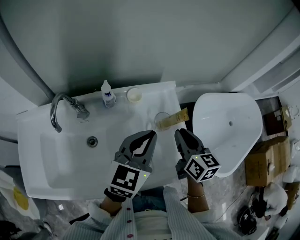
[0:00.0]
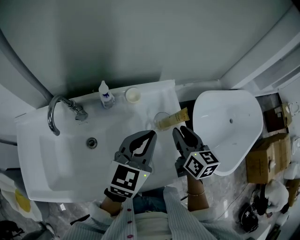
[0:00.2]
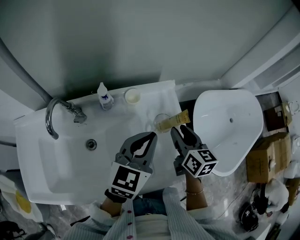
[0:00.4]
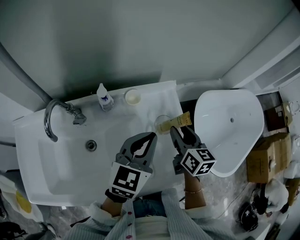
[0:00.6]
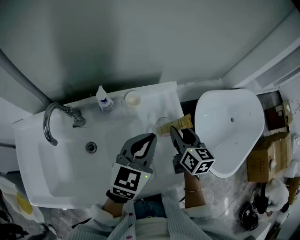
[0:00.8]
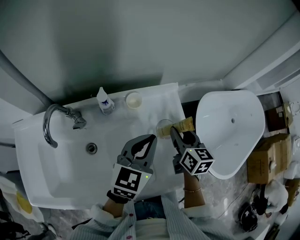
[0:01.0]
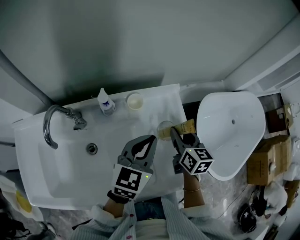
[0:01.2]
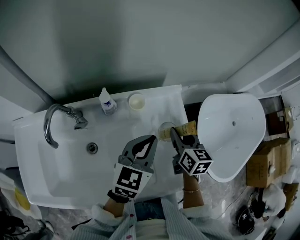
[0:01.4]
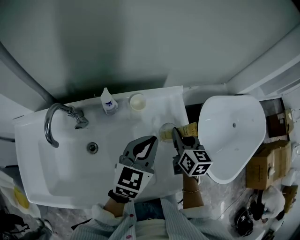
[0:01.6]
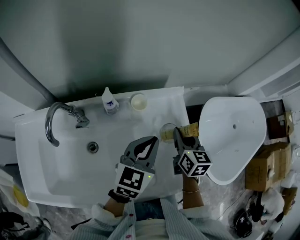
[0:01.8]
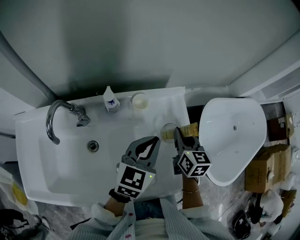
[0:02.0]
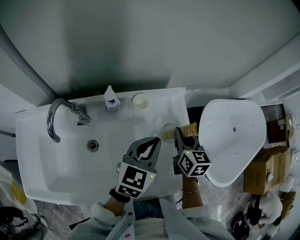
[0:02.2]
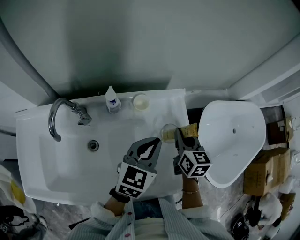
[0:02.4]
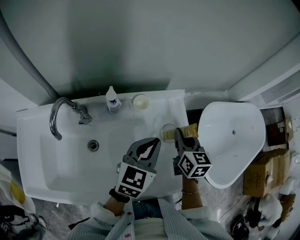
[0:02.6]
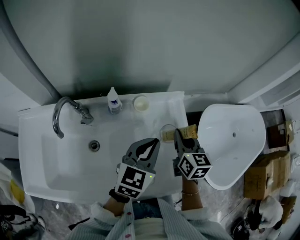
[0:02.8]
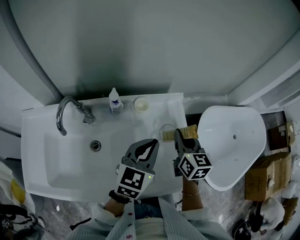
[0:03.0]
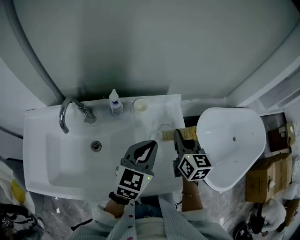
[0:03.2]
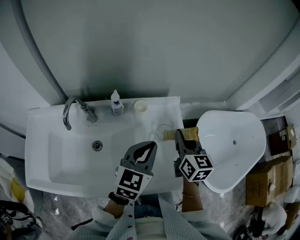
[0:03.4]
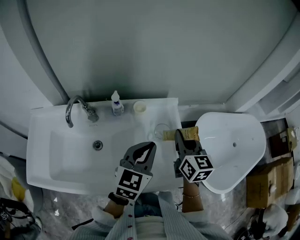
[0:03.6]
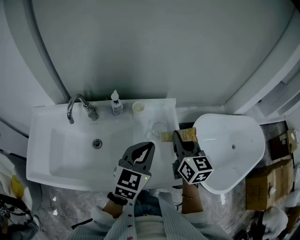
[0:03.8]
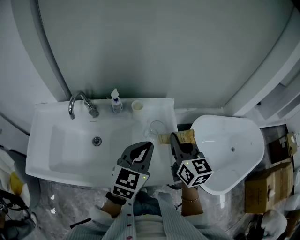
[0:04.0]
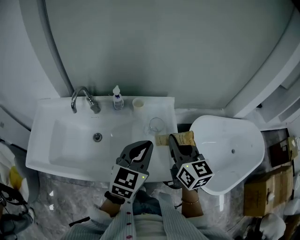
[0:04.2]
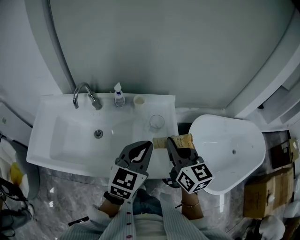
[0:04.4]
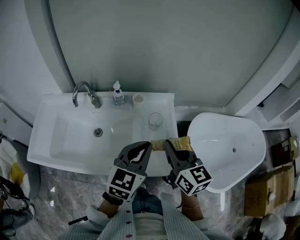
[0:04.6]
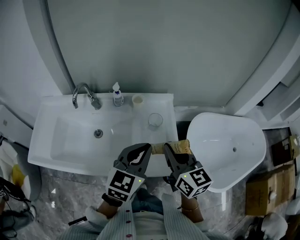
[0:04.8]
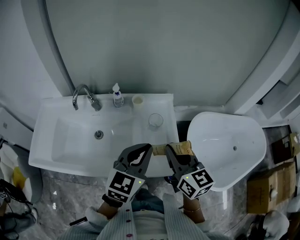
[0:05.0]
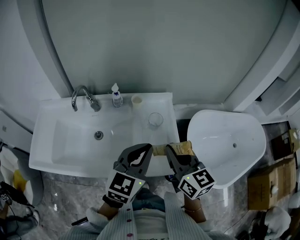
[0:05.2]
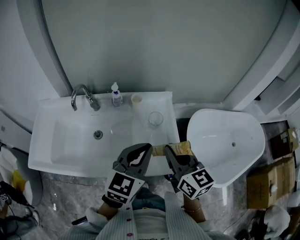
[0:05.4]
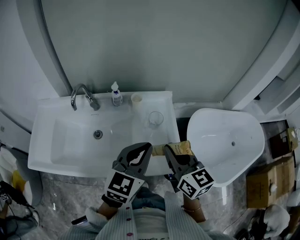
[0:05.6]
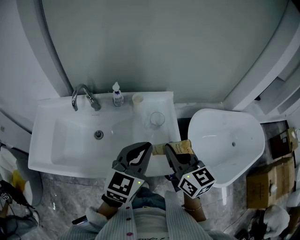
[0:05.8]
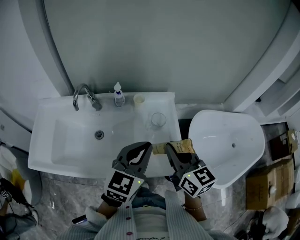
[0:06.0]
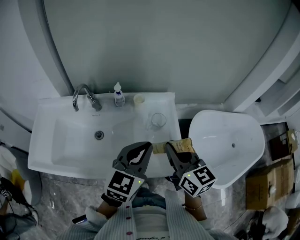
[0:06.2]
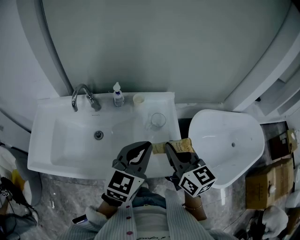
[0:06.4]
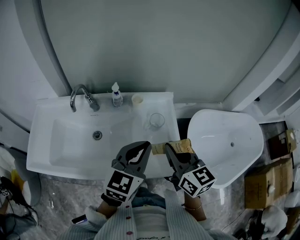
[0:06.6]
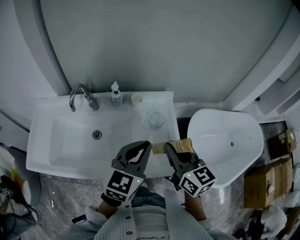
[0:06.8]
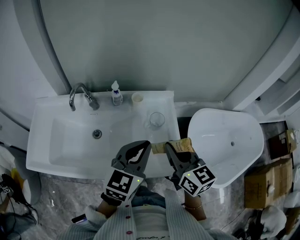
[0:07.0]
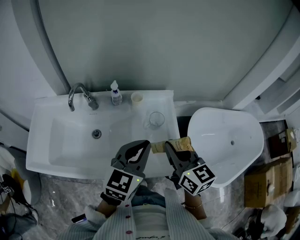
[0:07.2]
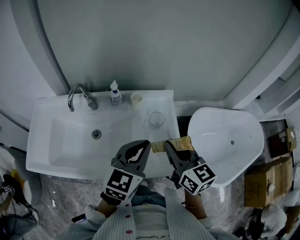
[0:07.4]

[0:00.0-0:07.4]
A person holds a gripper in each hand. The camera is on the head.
0:00.0 to 0:01.4: The left gripper goes approximately 5 cm downward. The right gripper is displaced downward and forward by approximately 10 cm, and opens up.
0:01.4 to 0:03.0: The right gripper goes some 5 cm upward, and closes up.
0:03.0 to 0:04.4: The two grippers go about 15 cm backward and upward. The right gripper rotates approximately 20 degrees.
0:04.4 to 0:07.4: The grippers move only a little.

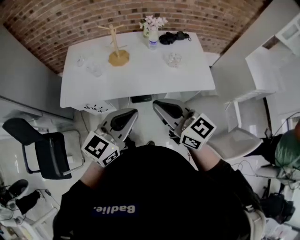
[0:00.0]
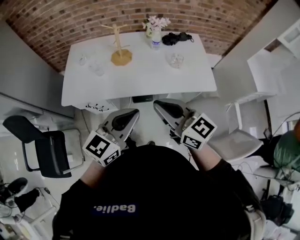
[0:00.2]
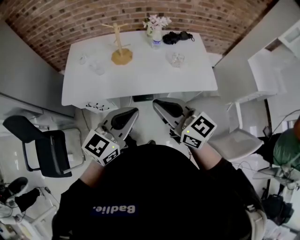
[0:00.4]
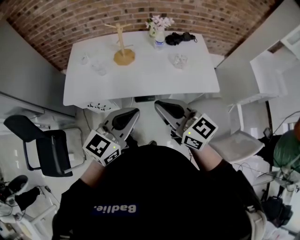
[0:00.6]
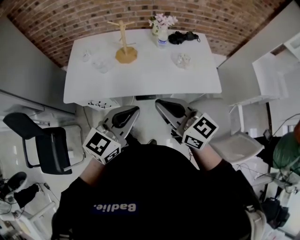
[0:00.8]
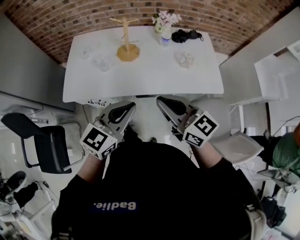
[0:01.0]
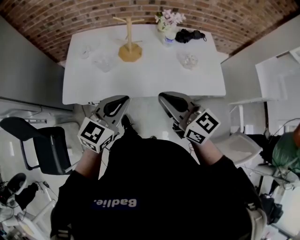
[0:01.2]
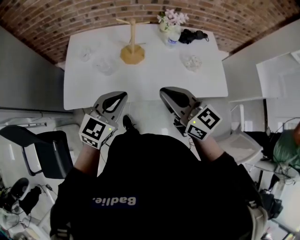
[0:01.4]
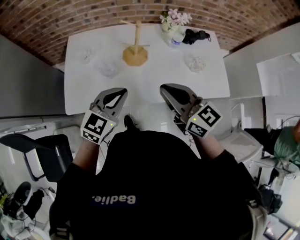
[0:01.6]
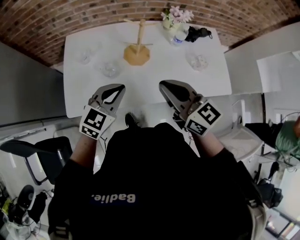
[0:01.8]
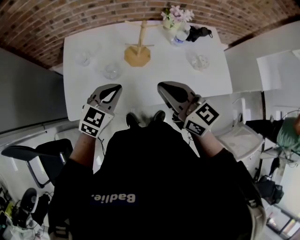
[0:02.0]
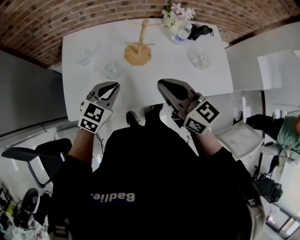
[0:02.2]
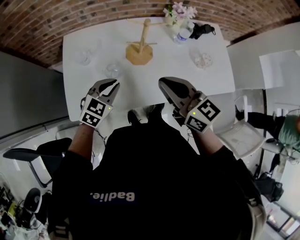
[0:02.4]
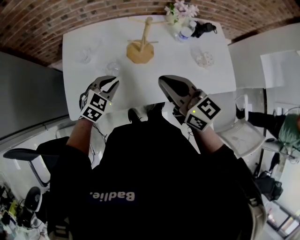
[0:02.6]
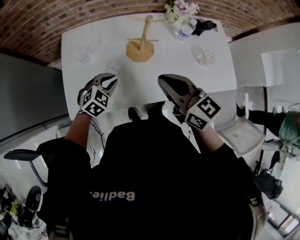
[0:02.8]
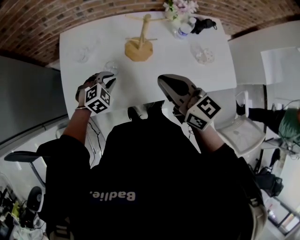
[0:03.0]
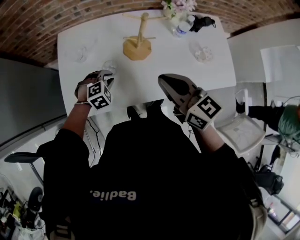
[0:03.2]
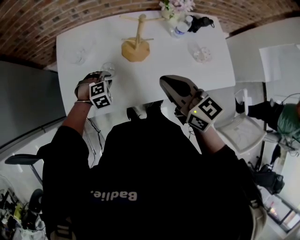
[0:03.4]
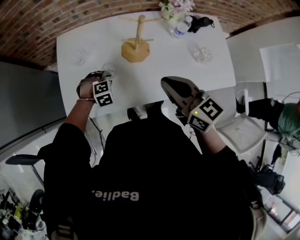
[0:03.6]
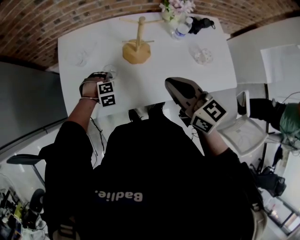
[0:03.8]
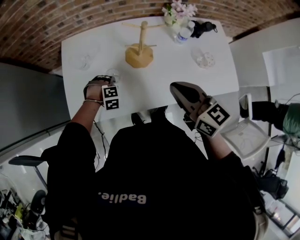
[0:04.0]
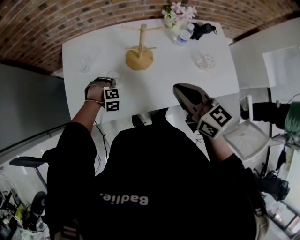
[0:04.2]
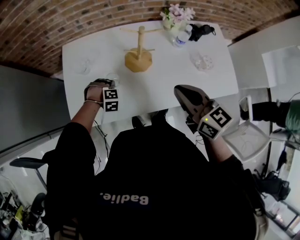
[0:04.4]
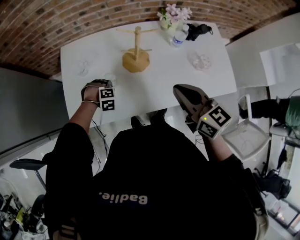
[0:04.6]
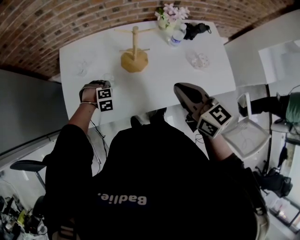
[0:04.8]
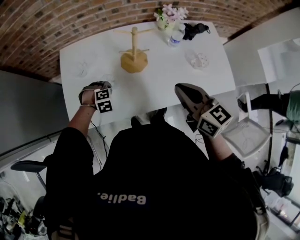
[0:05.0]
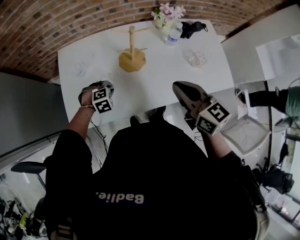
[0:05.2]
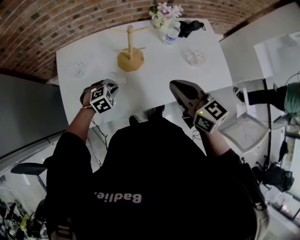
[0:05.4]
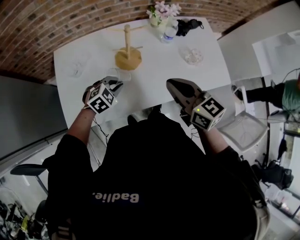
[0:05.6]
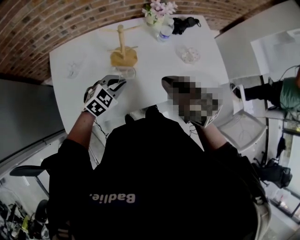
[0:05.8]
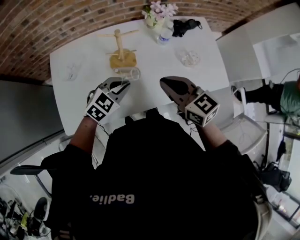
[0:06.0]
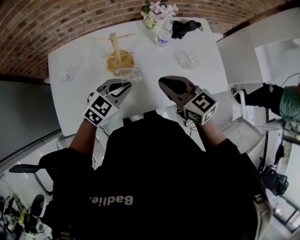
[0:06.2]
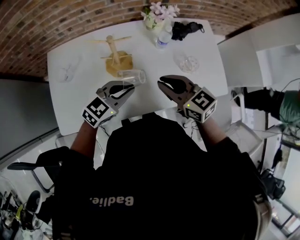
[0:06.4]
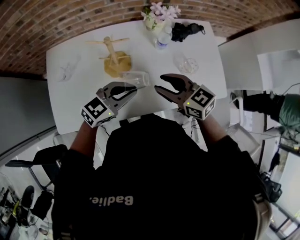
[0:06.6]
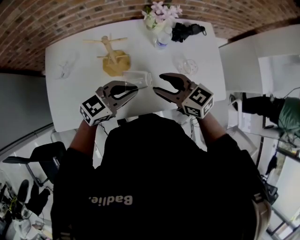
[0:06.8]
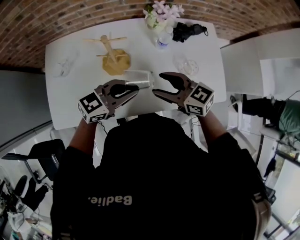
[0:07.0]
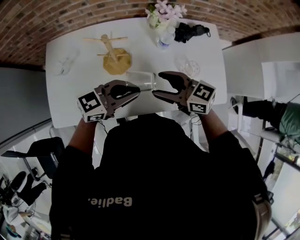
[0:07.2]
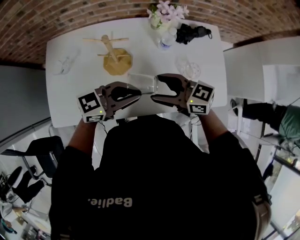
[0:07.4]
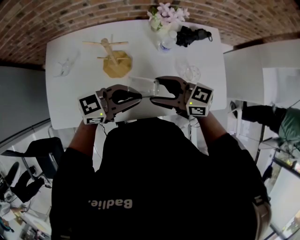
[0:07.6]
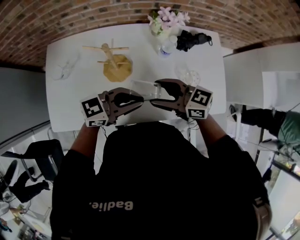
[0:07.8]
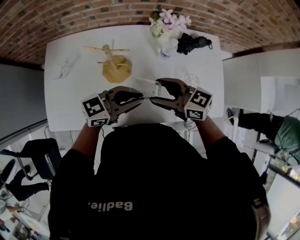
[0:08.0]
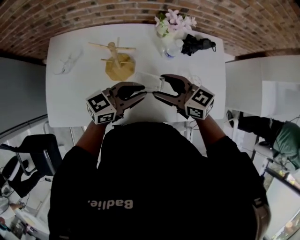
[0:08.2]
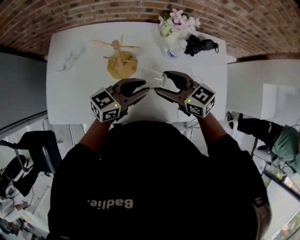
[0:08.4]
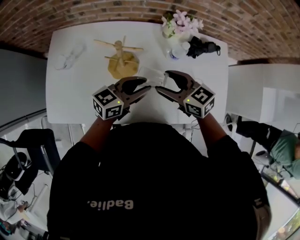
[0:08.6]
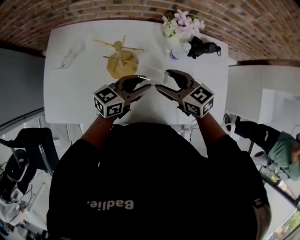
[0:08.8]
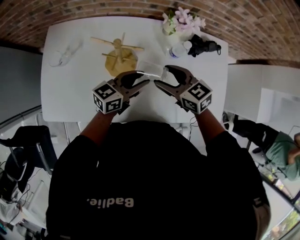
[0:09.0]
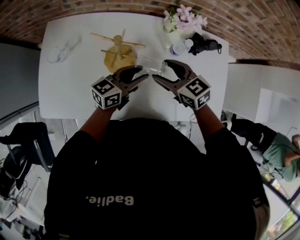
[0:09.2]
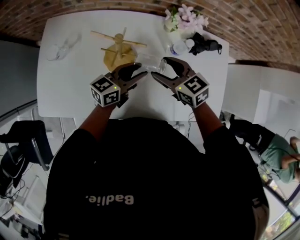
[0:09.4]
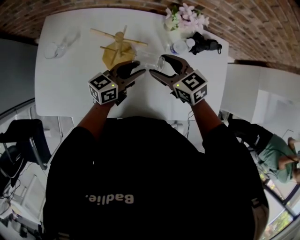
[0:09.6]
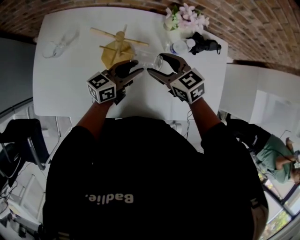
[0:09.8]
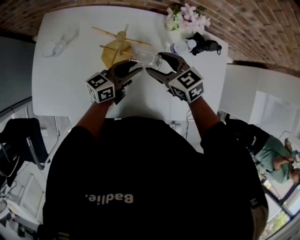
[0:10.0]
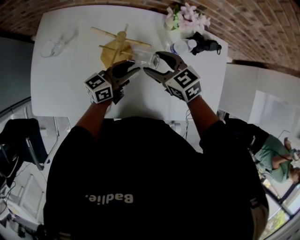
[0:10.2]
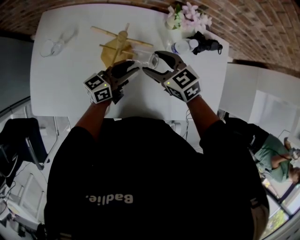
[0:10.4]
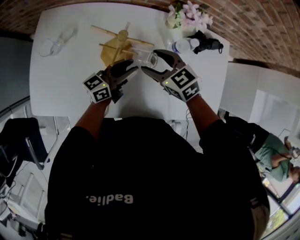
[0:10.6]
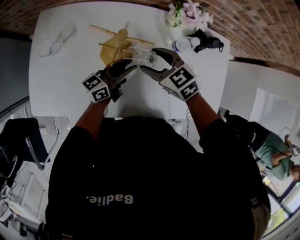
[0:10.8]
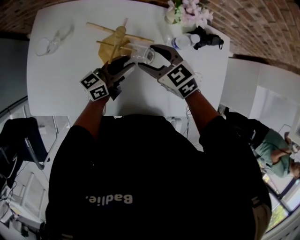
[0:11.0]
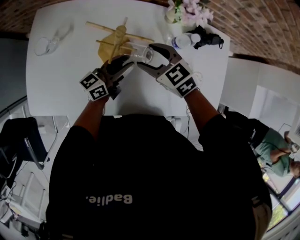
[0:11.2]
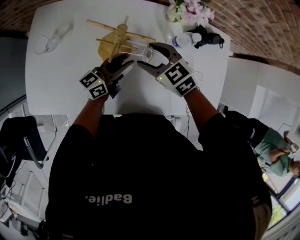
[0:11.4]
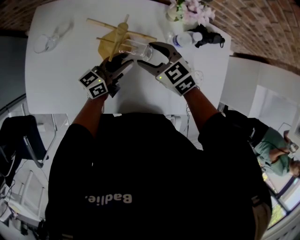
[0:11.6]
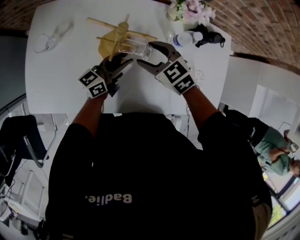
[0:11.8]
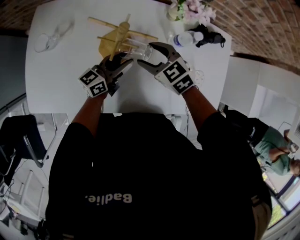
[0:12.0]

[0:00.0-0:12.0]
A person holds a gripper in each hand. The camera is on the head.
0:00.0 to 0:01.6: The grippers both shift forward and to the left by roughly 25 cm.
0:01.6 to 0:03.0: The left gripper travels downward, forward and to the left by about 25 cm, and tips its fingers downward by roughly 40 degrees. Meanwhile the right gripper is displaced forward and to the left by some 10 cm.
0:03.0 to 0:04.4: The right gripper changes place by approximately 5 cm. Meanwhile the left gripper goes roughly 10 cm downward, and turns by approximately 40 degrees.
0:04.4 to 0:06.0: The left gripper goes roughly 20 cm upward, and points its fingers about 40 degrees further upward.
0:06.0 to 0:07.6: The right gripper shifts by some 10 cm, turns by approximately 30 degrees, and opens up; the left gripper shifts by approximately 10 cm, and tilts its fingers some 30 degrees upward.
0:07.6 to 0:09.0: The right gripper moves about 10 cm, and swivels about 20 degrees; the left gripper ends up approximately 15 cm from where it was, rotates approximately 30 degrees, and opens up.
0:09.0 to 0:10.4: The right gripper ends up some 5 cm from where it was, while the left gripper shifts some 5 cm downward.
0:10.4 to 0:12.0: There are only small adjustments of the grippers.

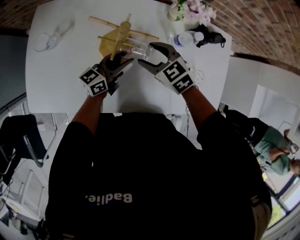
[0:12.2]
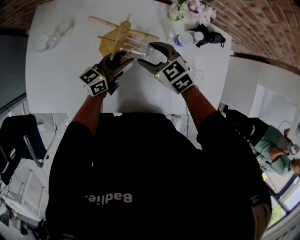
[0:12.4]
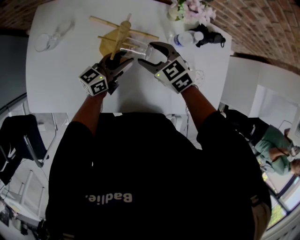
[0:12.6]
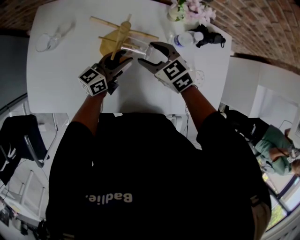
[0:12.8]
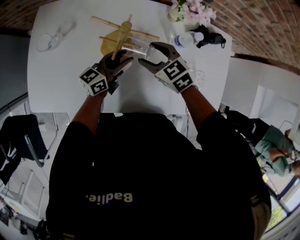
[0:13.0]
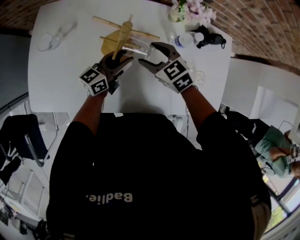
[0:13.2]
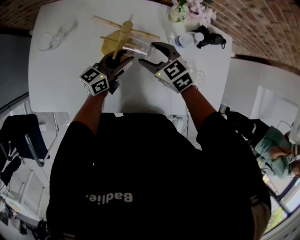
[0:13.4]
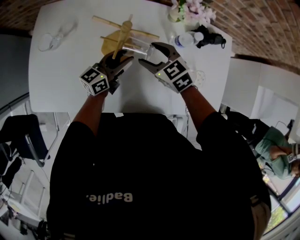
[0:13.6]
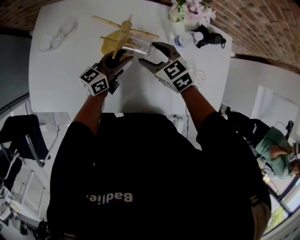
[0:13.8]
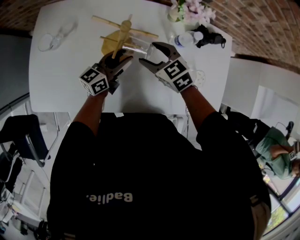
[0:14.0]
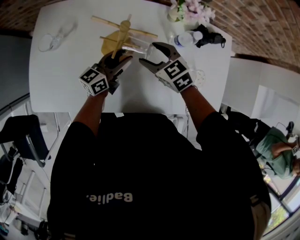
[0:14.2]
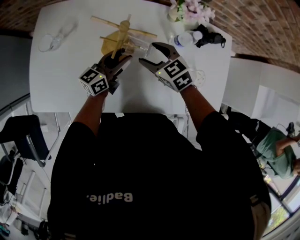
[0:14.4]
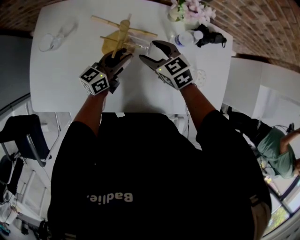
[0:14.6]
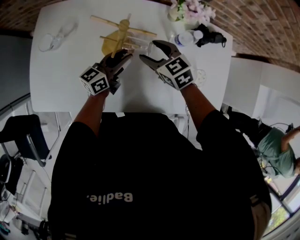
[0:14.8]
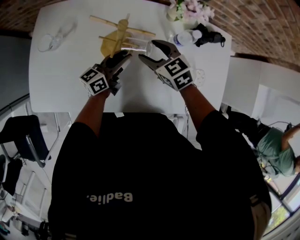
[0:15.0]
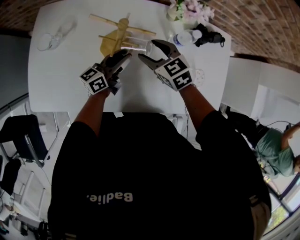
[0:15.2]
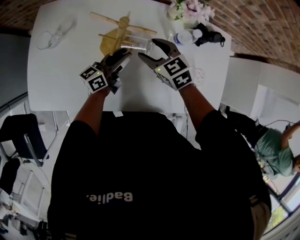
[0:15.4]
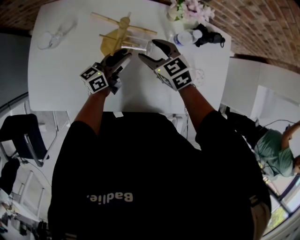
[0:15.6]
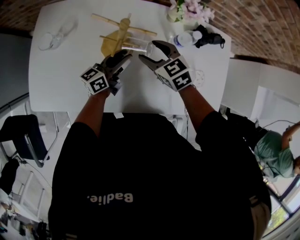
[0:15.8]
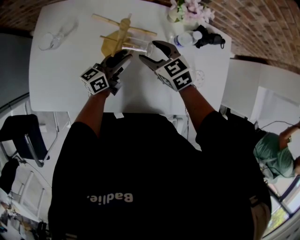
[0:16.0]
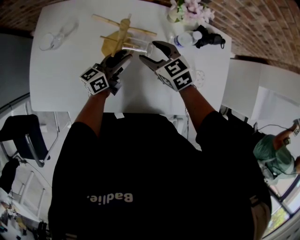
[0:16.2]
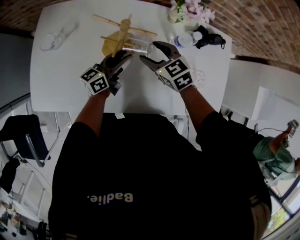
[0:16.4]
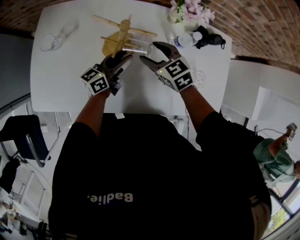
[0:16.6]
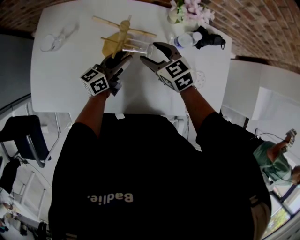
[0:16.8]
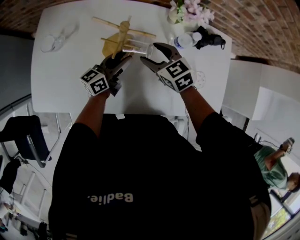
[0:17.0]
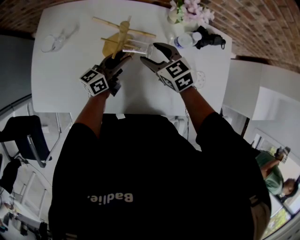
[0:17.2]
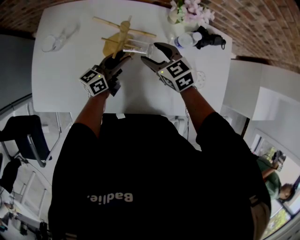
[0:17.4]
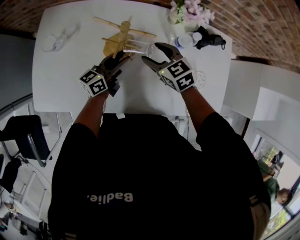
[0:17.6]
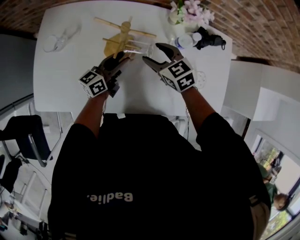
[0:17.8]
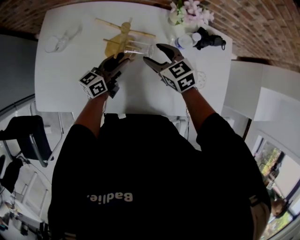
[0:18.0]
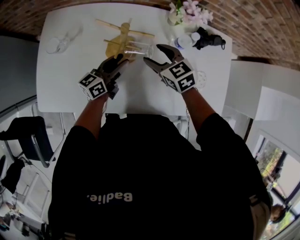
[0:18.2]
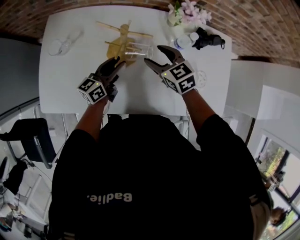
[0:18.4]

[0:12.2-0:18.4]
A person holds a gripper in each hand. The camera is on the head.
0:12.2 to 0:13.8: Both grippers stay put.
0:13.8 to 0:15.4: The grippers stay close to where they were, moving slightly.
0:15.4 to 0:16.8: Both grippers stay put.
0:16.8 to 0:18.4: The grippers make only small movements.
